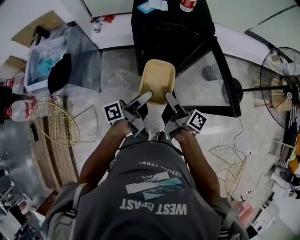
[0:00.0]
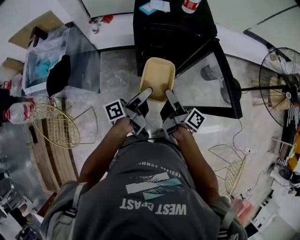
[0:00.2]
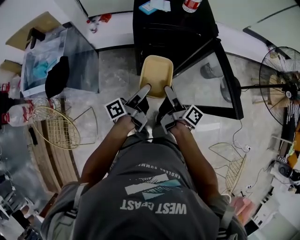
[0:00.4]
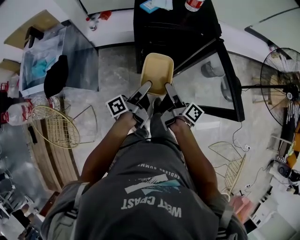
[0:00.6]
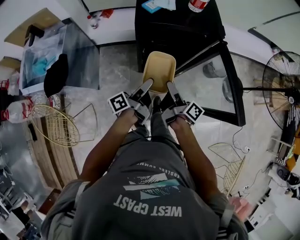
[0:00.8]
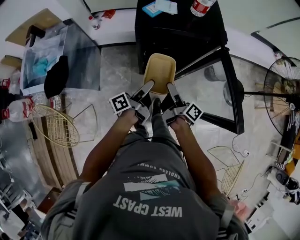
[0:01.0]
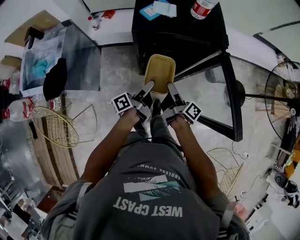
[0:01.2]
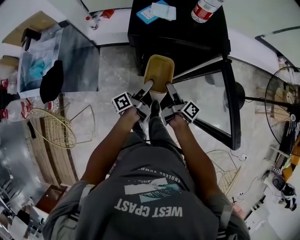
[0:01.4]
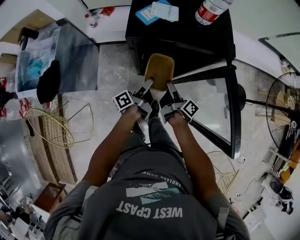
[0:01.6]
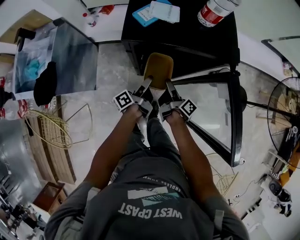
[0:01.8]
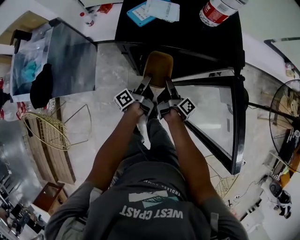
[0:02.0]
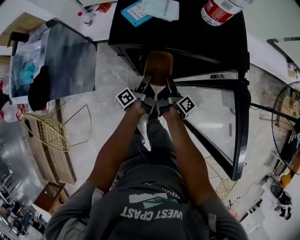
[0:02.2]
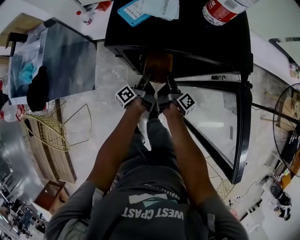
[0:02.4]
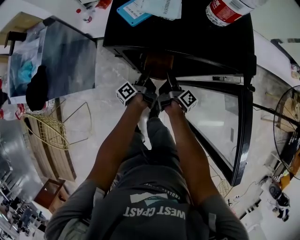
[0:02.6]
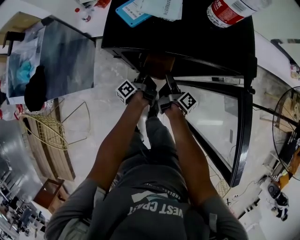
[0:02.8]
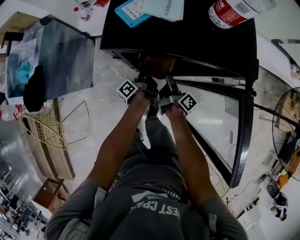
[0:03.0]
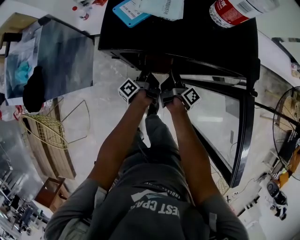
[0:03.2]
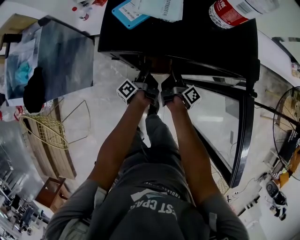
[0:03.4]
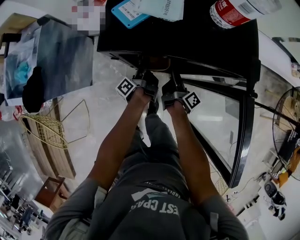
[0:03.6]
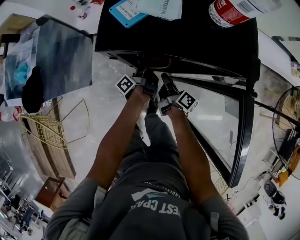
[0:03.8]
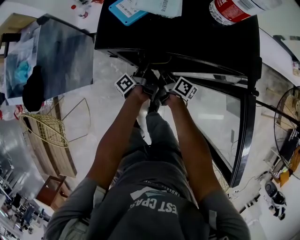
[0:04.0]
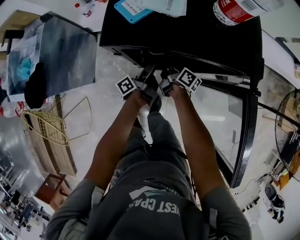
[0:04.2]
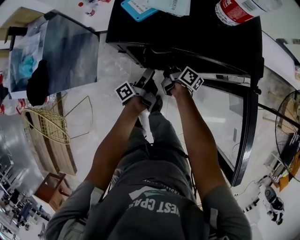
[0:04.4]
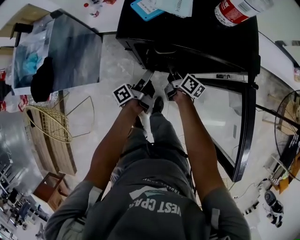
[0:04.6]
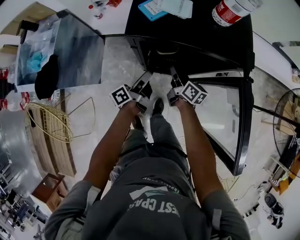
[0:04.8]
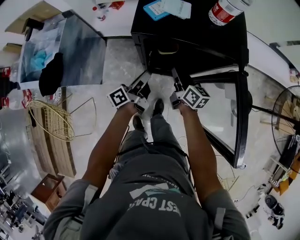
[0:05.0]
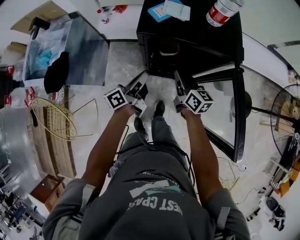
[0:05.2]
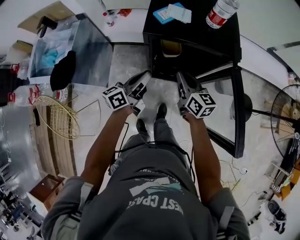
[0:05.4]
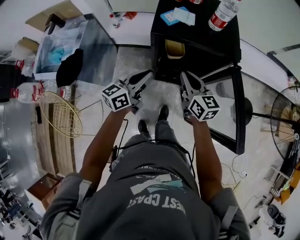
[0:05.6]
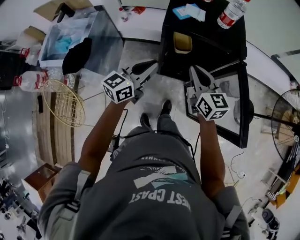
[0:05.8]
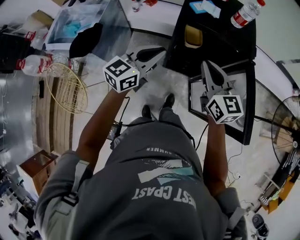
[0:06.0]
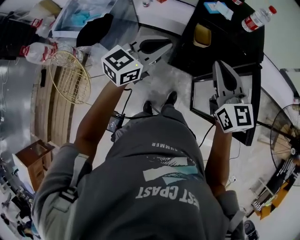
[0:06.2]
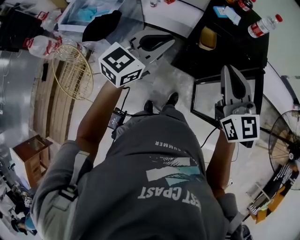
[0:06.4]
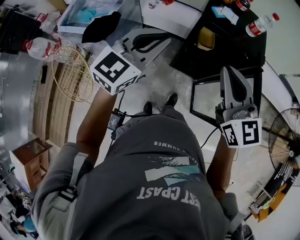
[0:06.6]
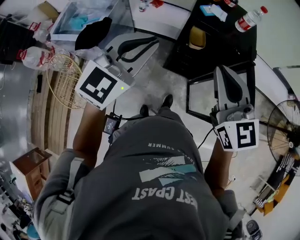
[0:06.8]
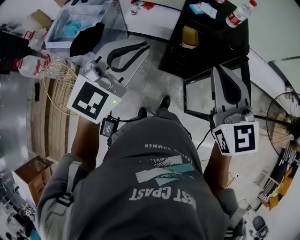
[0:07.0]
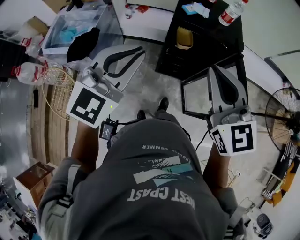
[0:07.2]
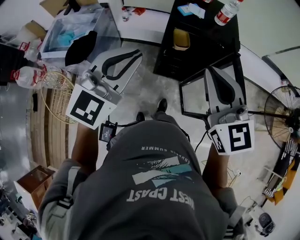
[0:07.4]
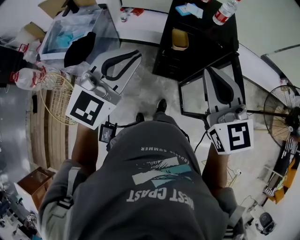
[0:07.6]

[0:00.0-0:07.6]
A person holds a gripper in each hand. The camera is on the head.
0.0 to 1.6 s: The right gripper goes roughly 15 cm downward.
1.6 to 3.0 s: The right gripper shifts roughly 10 cm downward.
3.0 to 4.6 s: The right gripper moves approximately 5 cm, changes its angle by approximately 30 degrees, and closes.
4.6 to 6.0 s: The right gripper travels upward by roughly 35 cm, and twists roughly 60 degrees counterclockwise, seen from behind.
6.0 to 7.6 s: The right gripper is displaced upward by approximately 15 cm, and changes its angle by roughly 20 degrees.

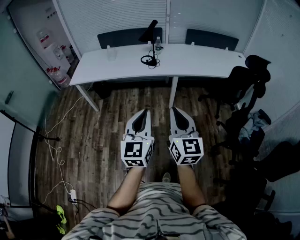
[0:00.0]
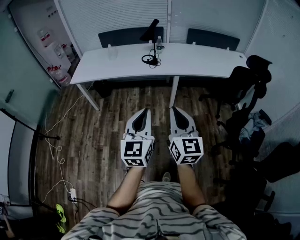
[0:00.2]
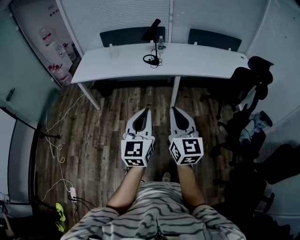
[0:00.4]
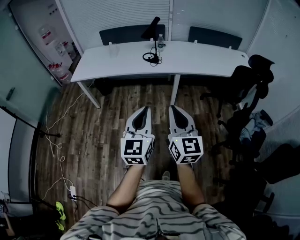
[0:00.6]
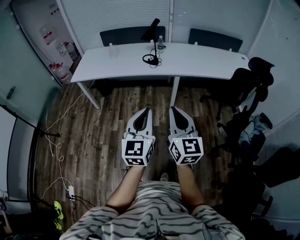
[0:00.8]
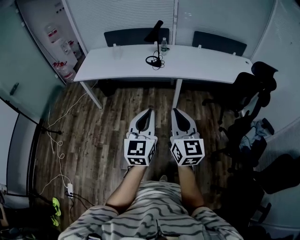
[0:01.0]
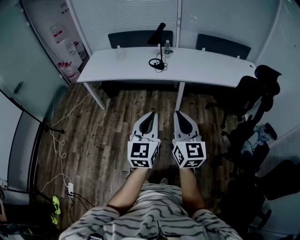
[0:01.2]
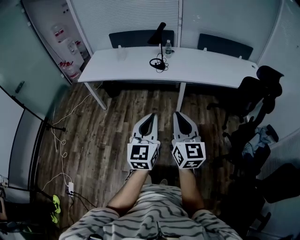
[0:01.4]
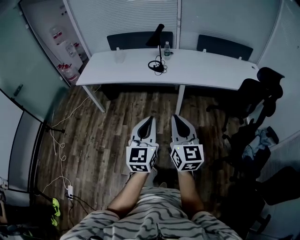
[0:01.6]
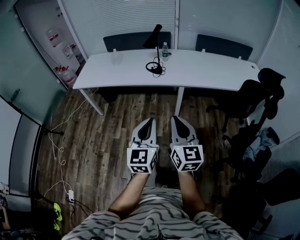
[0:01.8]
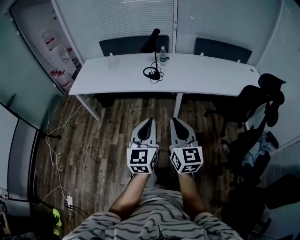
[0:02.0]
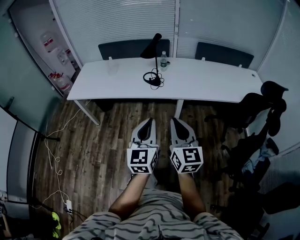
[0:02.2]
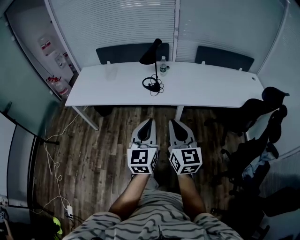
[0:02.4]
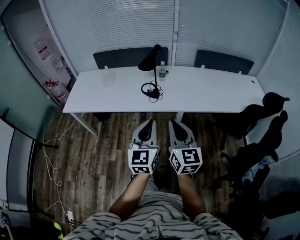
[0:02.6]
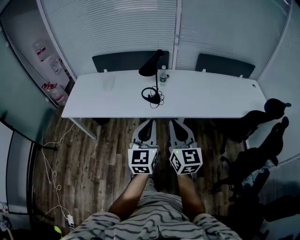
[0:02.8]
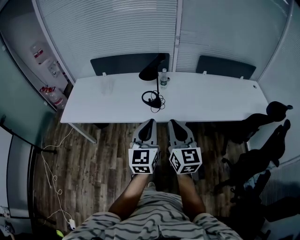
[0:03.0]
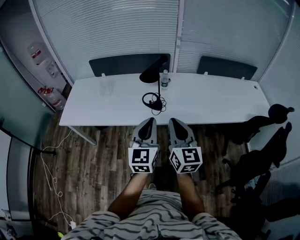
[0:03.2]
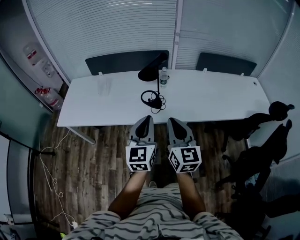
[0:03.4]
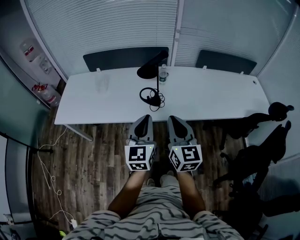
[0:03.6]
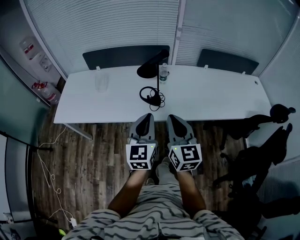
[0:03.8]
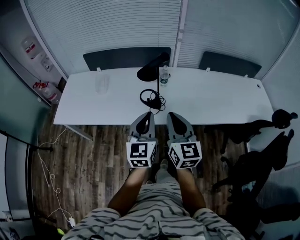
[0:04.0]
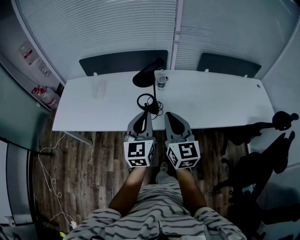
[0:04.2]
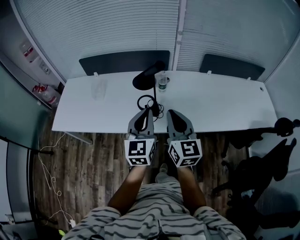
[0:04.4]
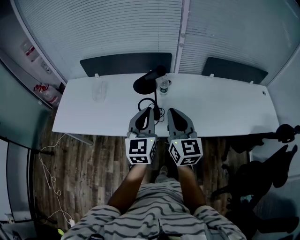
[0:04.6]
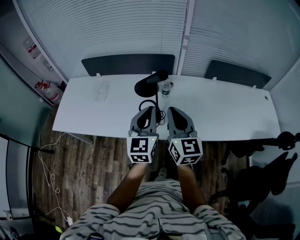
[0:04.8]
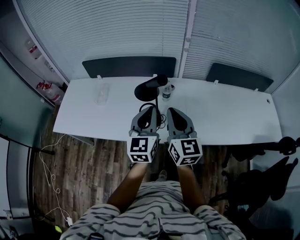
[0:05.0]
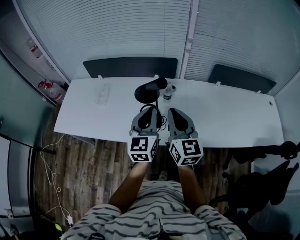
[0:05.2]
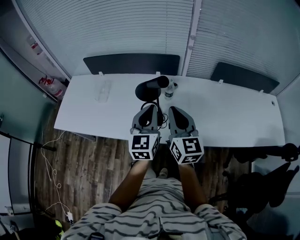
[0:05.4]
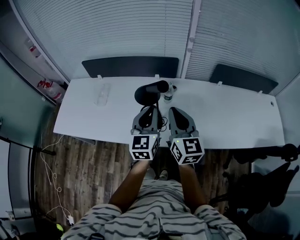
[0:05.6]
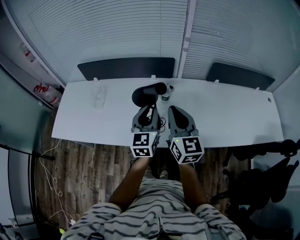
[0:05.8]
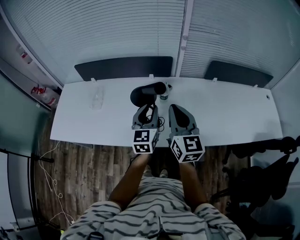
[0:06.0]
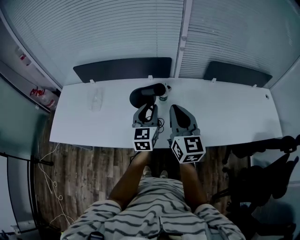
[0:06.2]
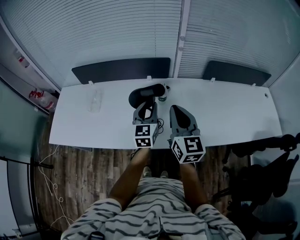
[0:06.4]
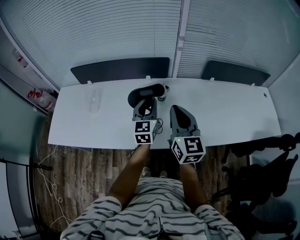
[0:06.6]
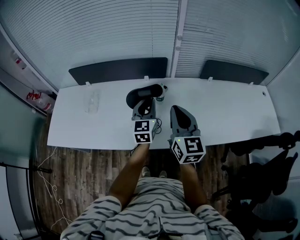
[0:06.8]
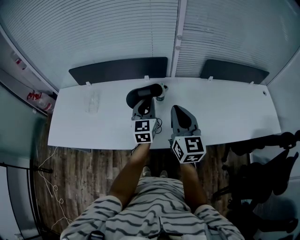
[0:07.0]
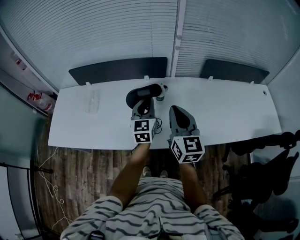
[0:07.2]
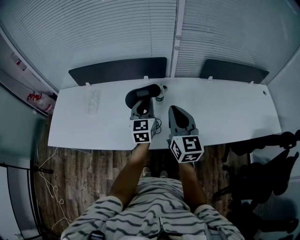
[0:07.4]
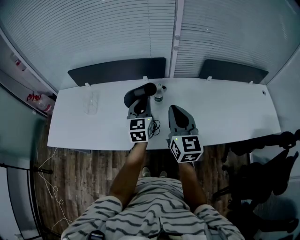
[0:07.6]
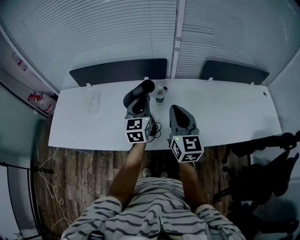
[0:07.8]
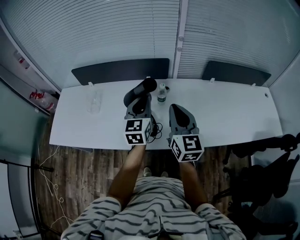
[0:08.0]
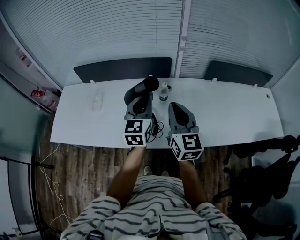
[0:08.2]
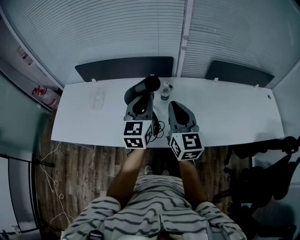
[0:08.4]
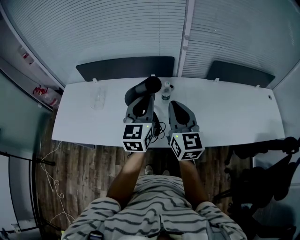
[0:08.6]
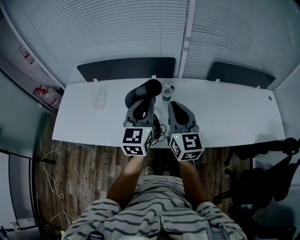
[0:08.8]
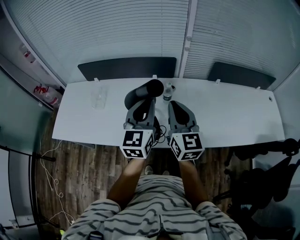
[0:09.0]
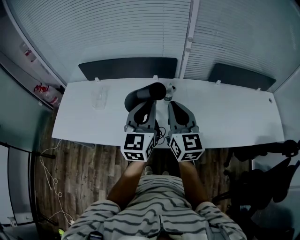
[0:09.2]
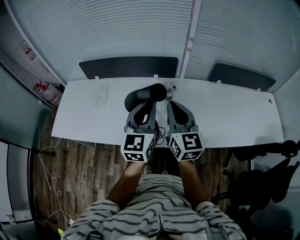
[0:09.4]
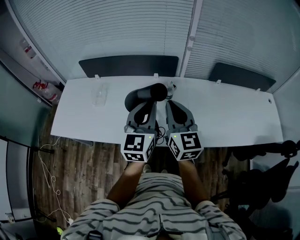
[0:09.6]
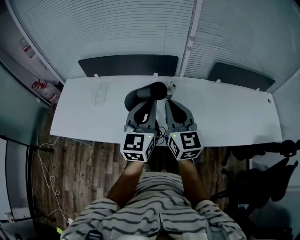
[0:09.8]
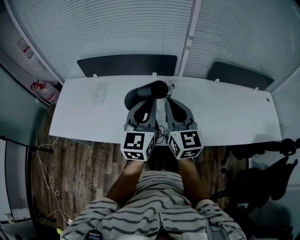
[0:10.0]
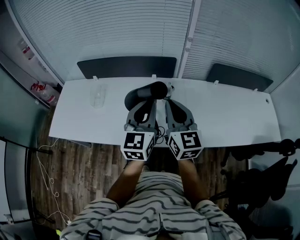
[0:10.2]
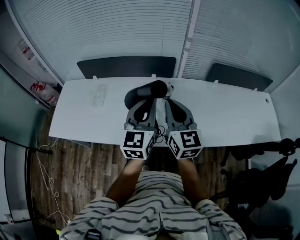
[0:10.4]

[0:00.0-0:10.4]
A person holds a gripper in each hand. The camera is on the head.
0.0 to 1.4 s: Both grippers move to the right, some 5 cm.
1.4 to 3.0 s: Both grippers travel together forward, roughly 40 cm.
3.0 to 4.4 s: Both grippers move forward, approximately 20 cm.
4.4 to 6.0 s: The left gripper heads forward and downward, covering some 20 cm, and opens its fingers. Meanwhile the right gripper moves forward, roughly 15 cm.
6.0 to 7.4 s: The left gripper travels forward by approximately 5 cm.
7.4 to 9.0 s: The left gripper shifts about 15 cm upward and backward.
9.0 to 10.4 s: The grippers move only a little.

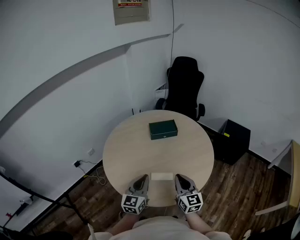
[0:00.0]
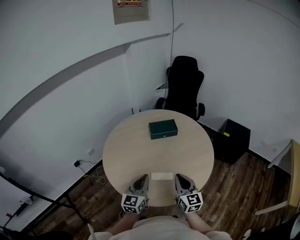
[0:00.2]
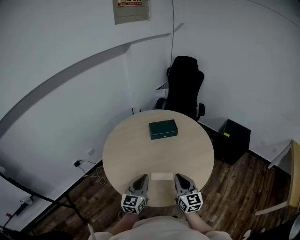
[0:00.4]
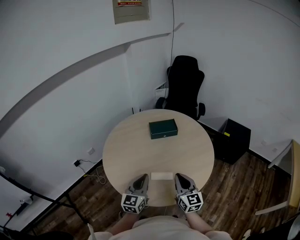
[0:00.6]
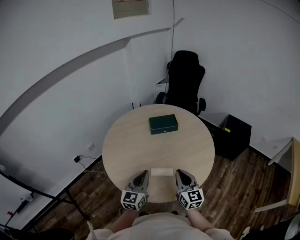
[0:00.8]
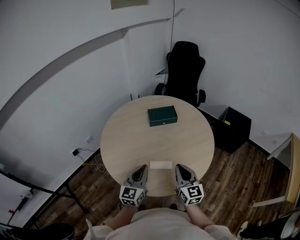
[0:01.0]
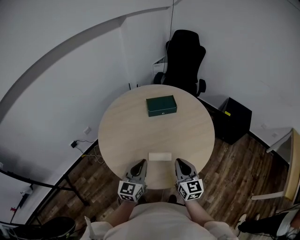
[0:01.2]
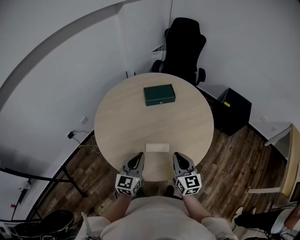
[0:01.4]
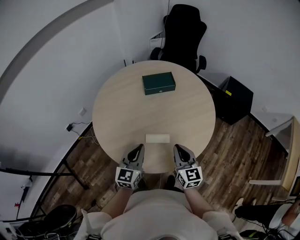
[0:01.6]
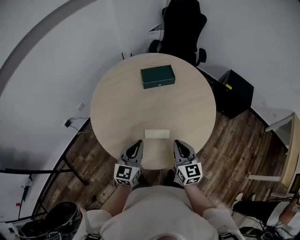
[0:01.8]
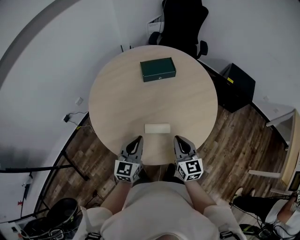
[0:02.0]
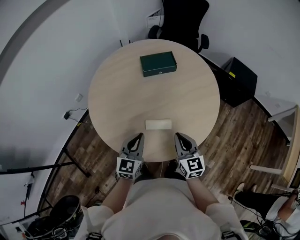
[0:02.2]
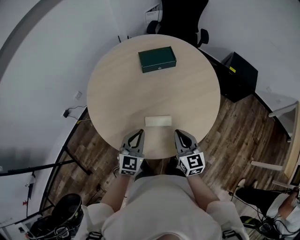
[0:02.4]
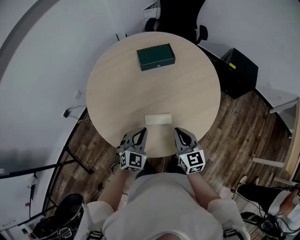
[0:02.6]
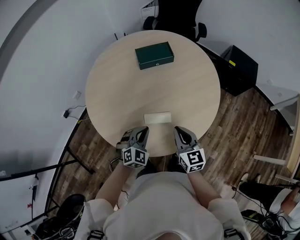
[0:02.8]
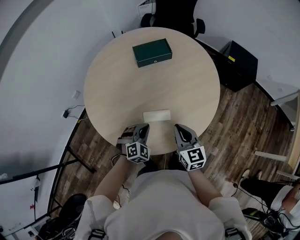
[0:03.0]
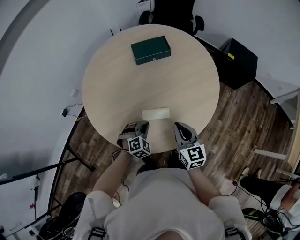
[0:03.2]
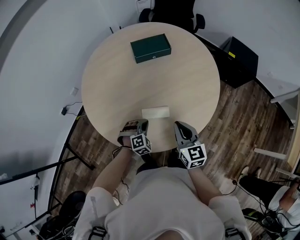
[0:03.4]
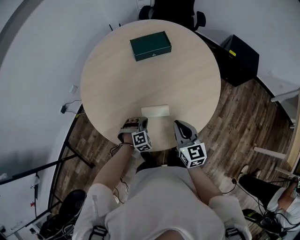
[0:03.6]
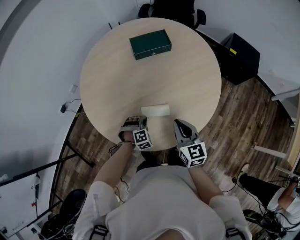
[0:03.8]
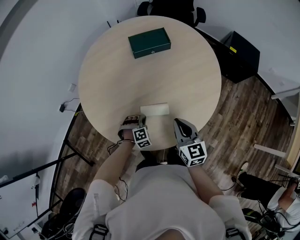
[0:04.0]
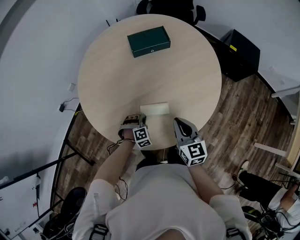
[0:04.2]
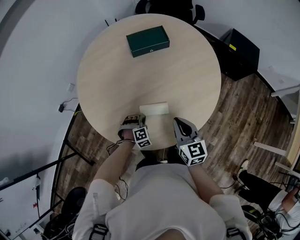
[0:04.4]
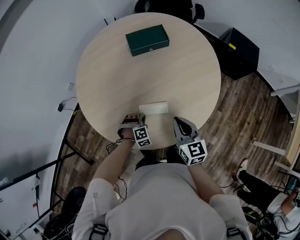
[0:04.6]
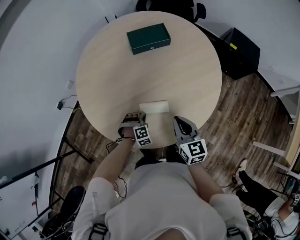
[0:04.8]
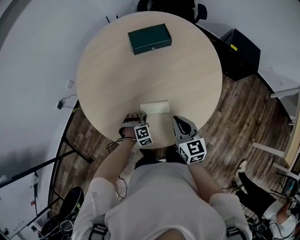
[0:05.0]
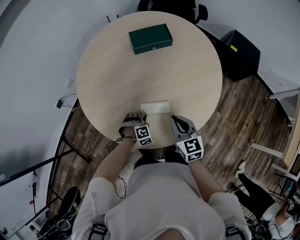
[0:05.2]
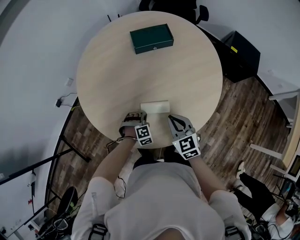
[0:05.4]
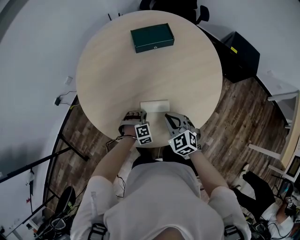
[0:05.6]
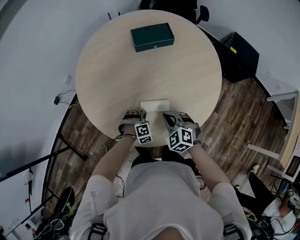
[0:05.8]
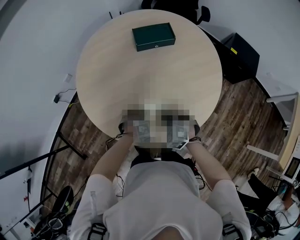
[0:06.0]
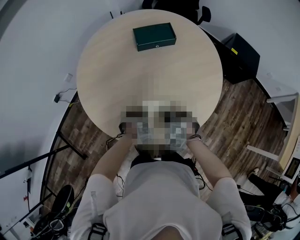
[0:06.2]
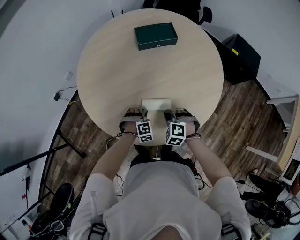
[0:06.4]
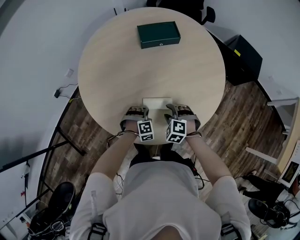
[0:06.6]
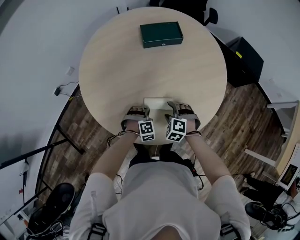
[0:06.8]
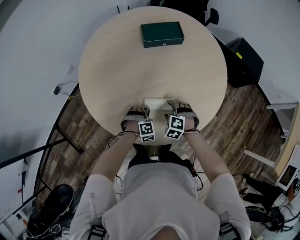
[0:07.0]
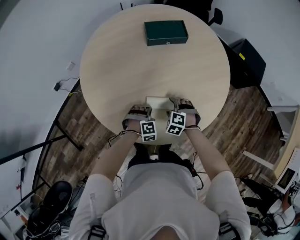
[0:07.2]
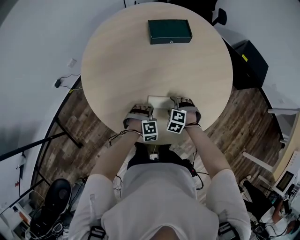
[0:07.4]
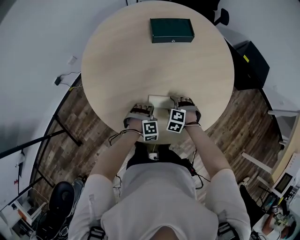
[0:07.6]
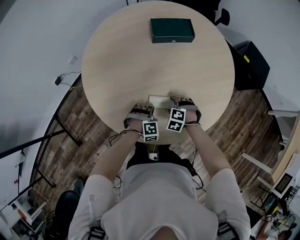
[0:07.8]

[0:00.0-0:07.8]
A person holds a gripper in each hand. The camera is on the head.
0.0 to 1.6 s: The grippers both shift downward by some 5 cm.
1.6 to 3.2 s: The left gripper moves downward, roughly 20 cm, and tips its fingers downward by approximately 40 degrees; the right gripper moves downward, roughly 5 cm.
3.2 to 4.6 s: The left gripper moves downward, roughly 10 cm, and swivels approximately 20 degrees.
4.6 to 6.2 s: The right gripper is displaced downward and to the left by some 15 cm, and rolls counterclockwise, seen from behind, by approximately 60 degrees.
6.2 to 7.8 s: The right gripper travels downward and forward by some 10 cm, and opens its fingers.
